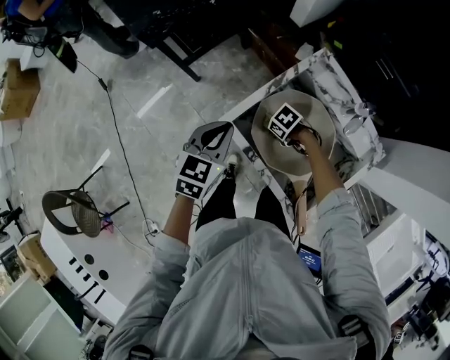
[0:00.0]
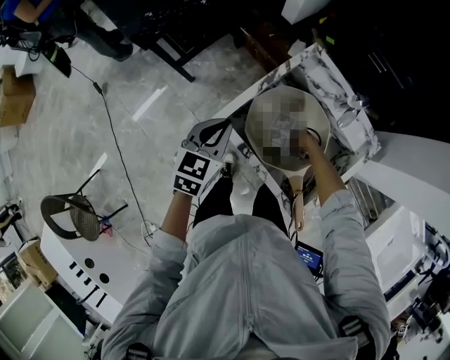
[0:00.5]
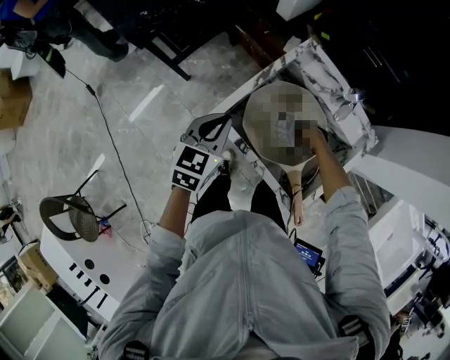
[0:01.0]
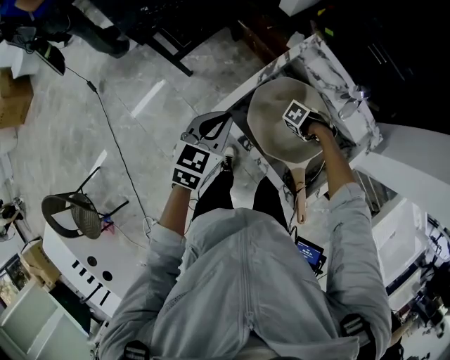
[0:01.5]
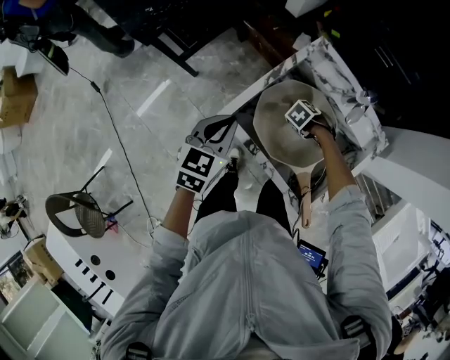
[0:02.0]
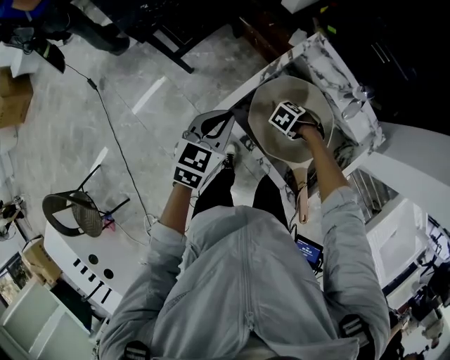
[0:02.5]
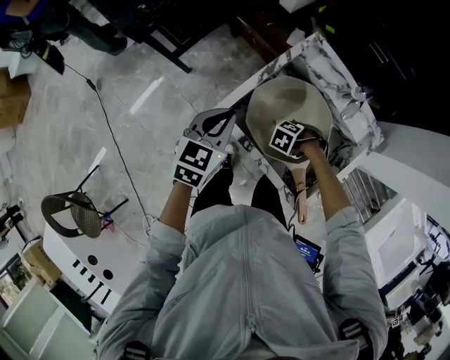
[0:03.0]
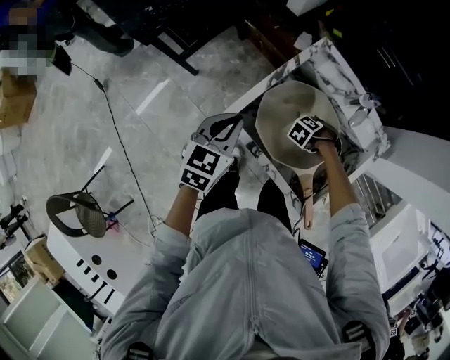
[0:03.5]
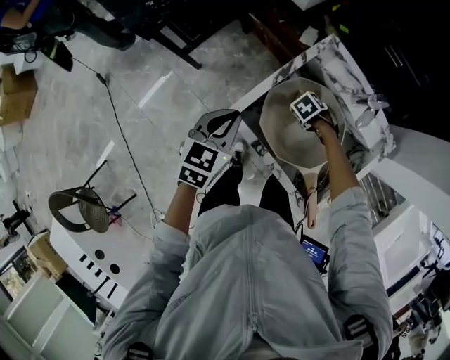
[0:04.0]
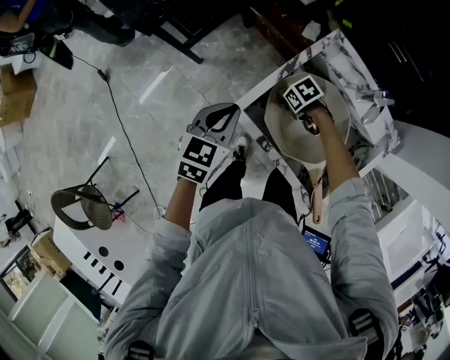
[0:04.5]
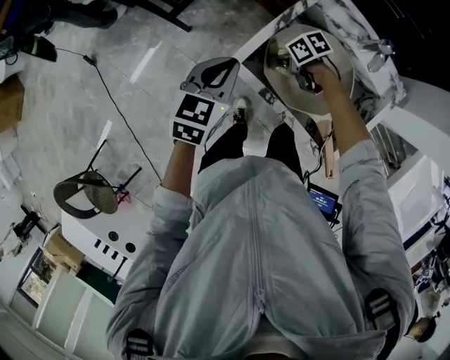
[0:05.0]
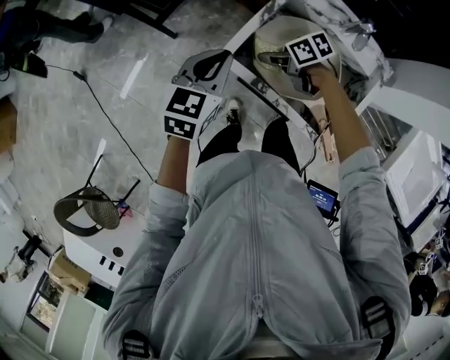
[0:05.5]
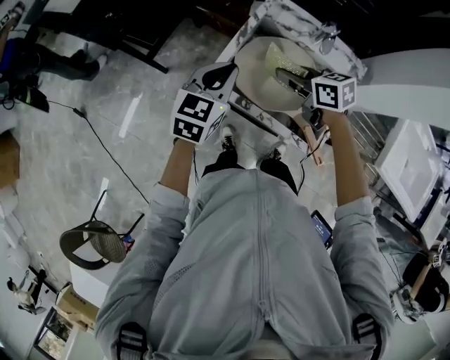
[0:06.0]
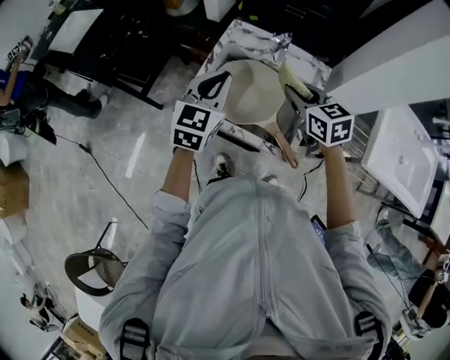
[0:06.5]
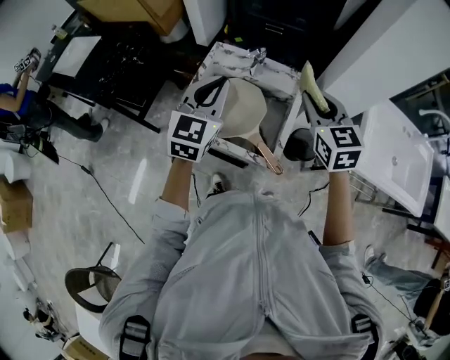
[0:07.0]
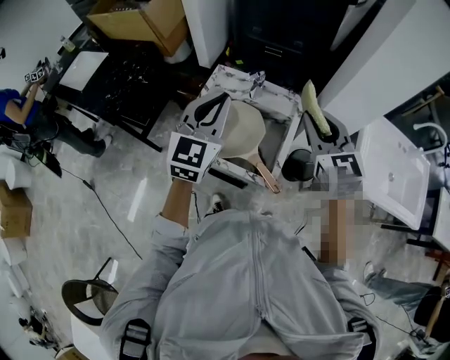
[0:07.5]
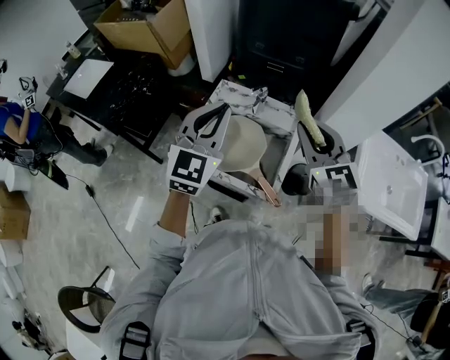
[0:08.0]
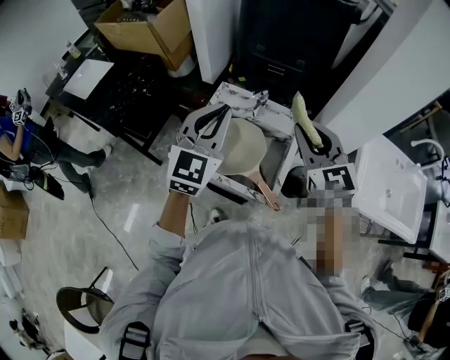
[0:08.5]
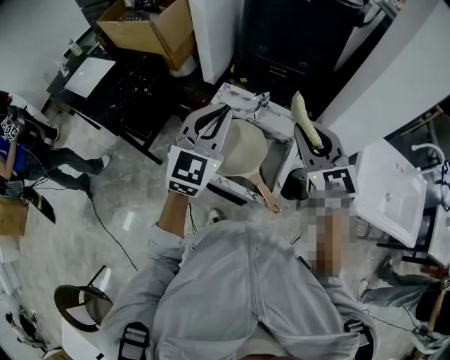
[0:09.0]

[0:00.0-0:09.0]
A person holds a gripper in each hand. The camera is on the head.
0:00.0 to 0:02.0: The right gripper ends up about 10 cm from where it was, and rotates about 20 degrees.
0:02.0 to 0:04.5: The right gripper moves about 10 cm, and rotates about 30 degrees.
0:04.5 to 0:07.0: The left gripper goes about 25 cm upward, and rotates approximately 40 degrees; the right gripper heads upward, covering roughly 50 cm, and points its fingers about 50 degrees further upward.
0:07.0 to 0:09.0: The grippers both shift upward by approximately 10 cm.

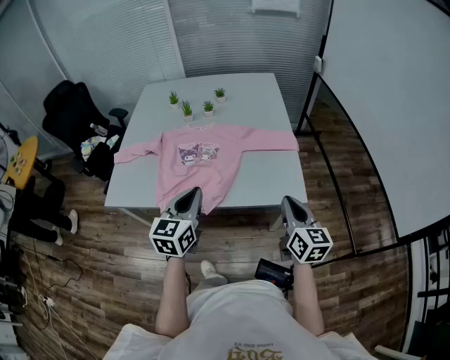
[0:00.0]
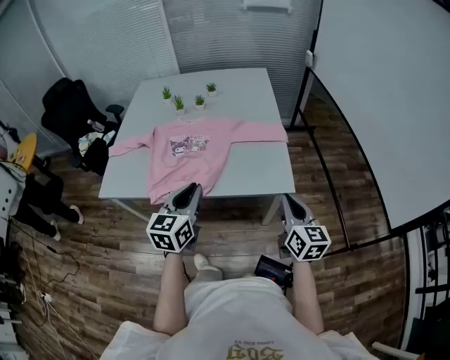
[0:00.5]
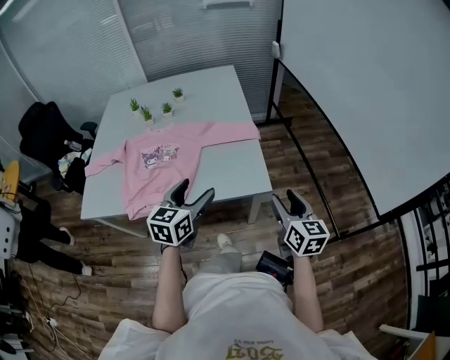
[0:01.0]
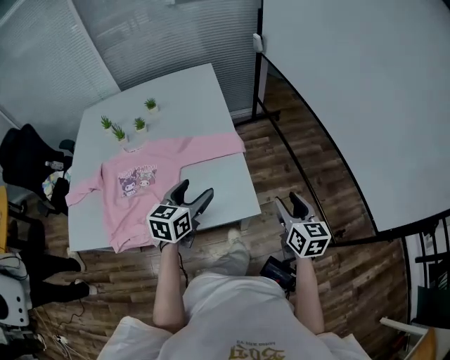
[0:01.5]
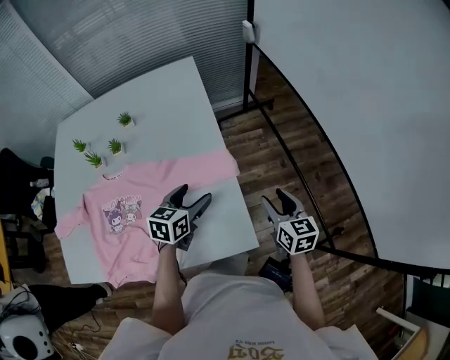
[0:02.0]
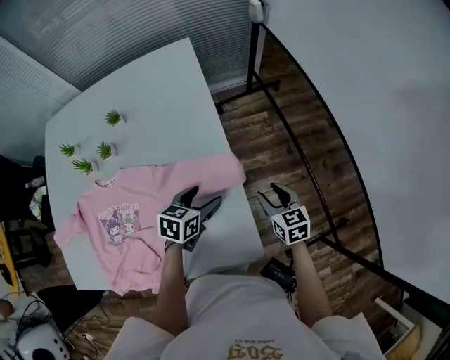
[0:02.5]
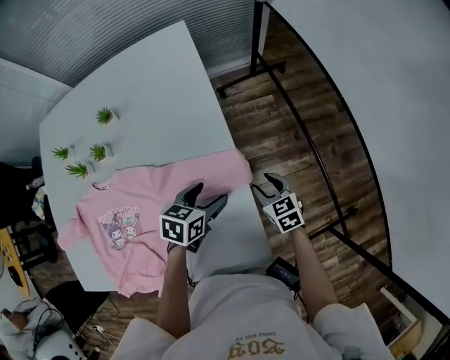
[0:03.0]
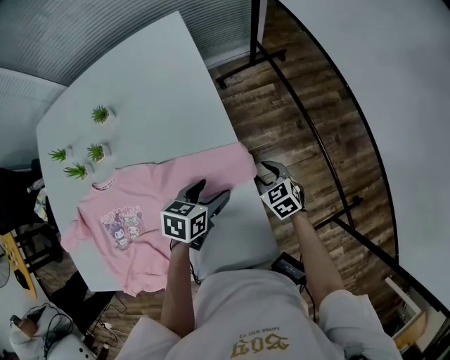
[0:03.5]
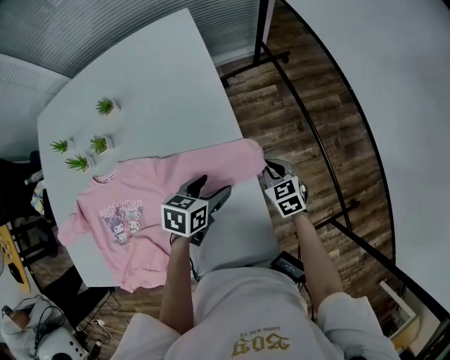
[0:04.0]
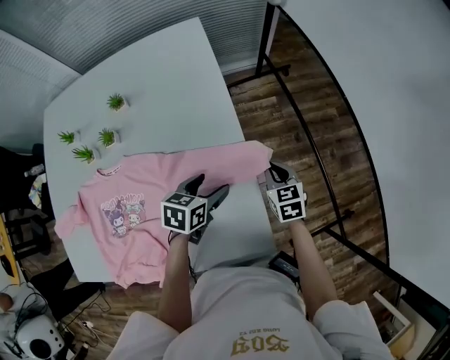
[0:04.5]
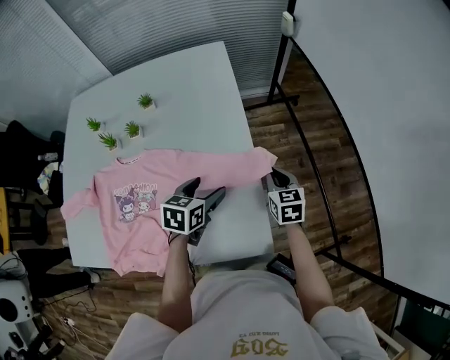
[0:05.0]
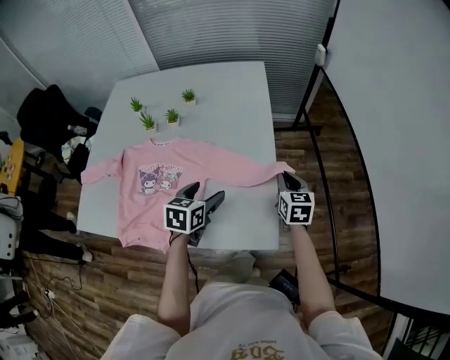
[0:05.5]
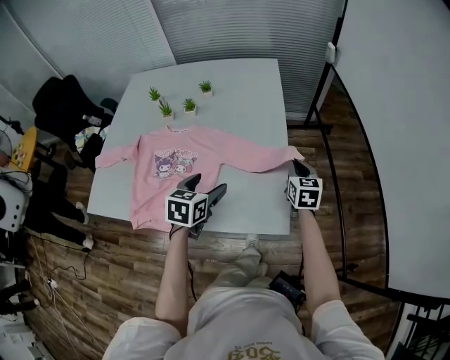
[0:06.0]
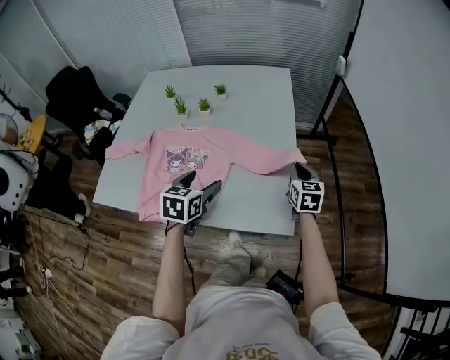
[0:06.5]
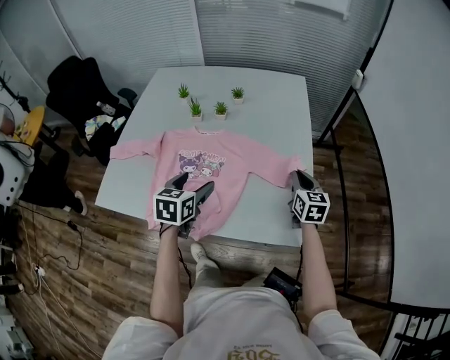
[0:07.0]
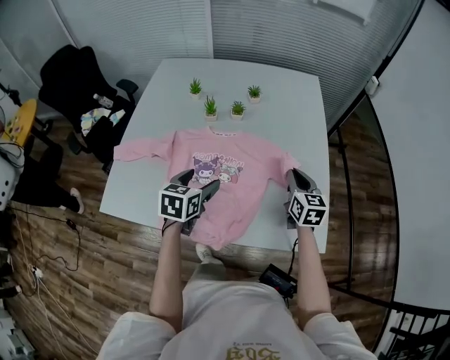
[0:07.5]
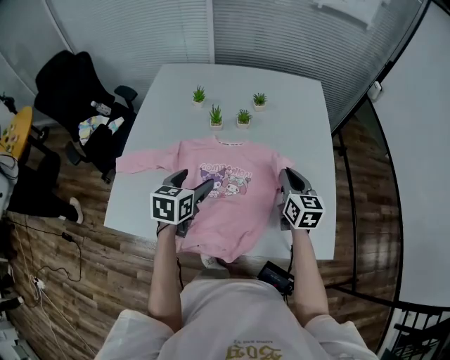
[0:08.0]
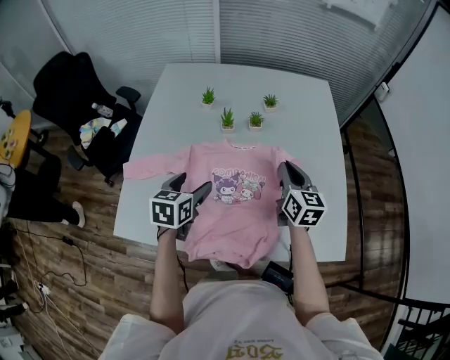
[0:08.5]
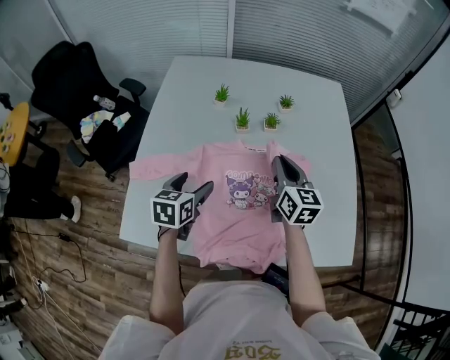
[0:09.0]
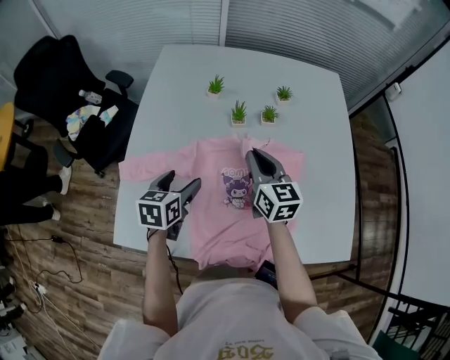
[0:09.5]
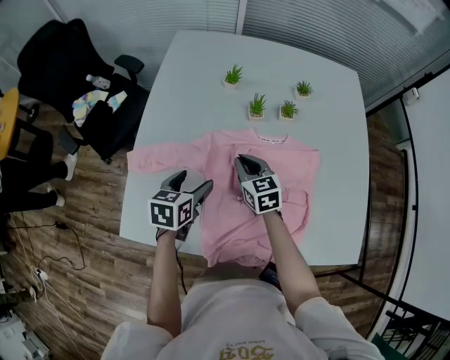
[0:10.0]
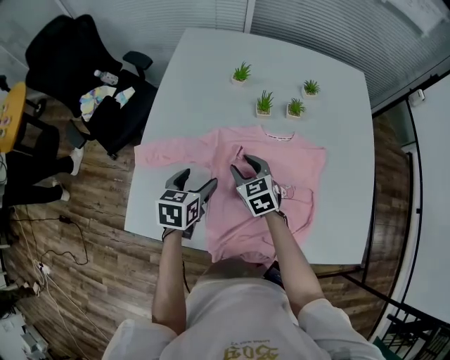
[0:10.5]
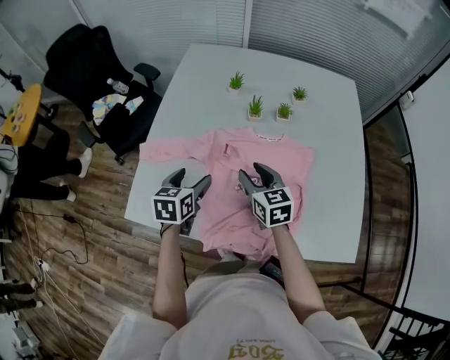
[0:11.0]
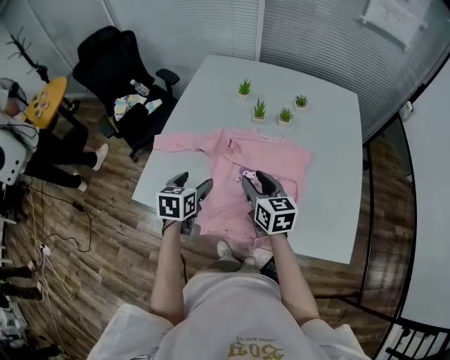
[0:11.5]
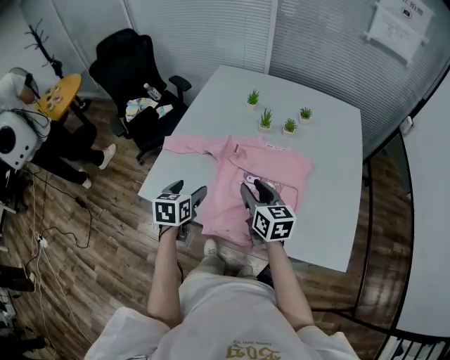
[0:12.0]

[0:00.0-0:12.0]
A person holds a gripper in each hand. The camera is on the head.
0:00.0 to 0:02.0: Both grippers travel together forward, to the right and downward, approximately 40 cm. The left gripper changes its angle by roughly 30 degrees, and opens up. The right gripper opens up.
0:02.0 to 0:04.0: The left gripper heads downward and forward, covering about 15 cm, and turns by approximately 20 degrees. Meanwhile the right gripper heads downward, forward and to the left, covering some 25 cm, swivels about 30 degrees, and closes.
0:04.0 to 0:06.0: The right gripper is displaced upward and backward by some 20 cm. Meanwhile the left gripper goes about 25 cm backward, upward and to the left, and rotates approximately 30 degrees.
0:06.0 to 0:08.0: Both grippers move to the left, about 30 cm.
0:08.0 to 0:10.0: The left gripper shifts roughly 20 cm to the left and downward; the right gripper moves to the left, approximately 30 cm, and turns by approximately 20 degrees.
0:10.0 to 0:12.0: The two grippers go approximately 20 cm backward and upward. The left gripper rotates some 20 degrees; the right gripper opens its fingers.

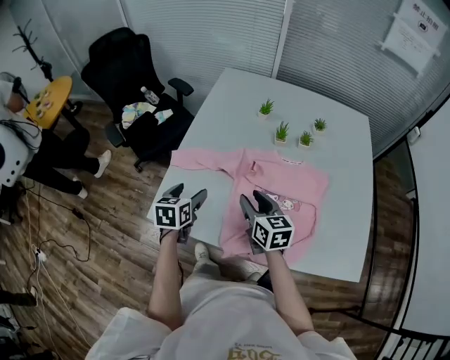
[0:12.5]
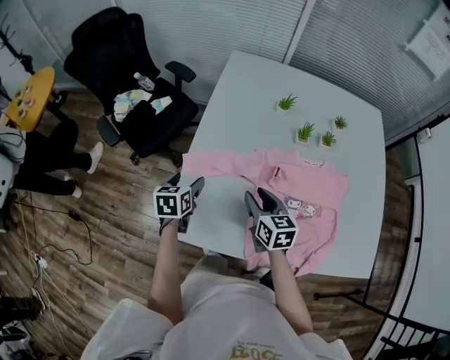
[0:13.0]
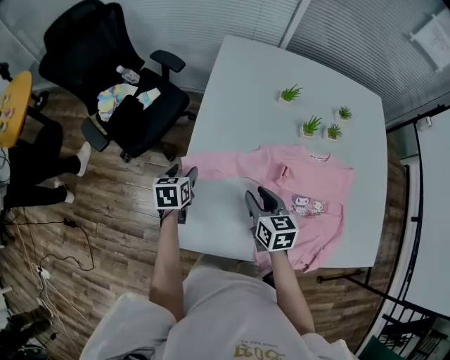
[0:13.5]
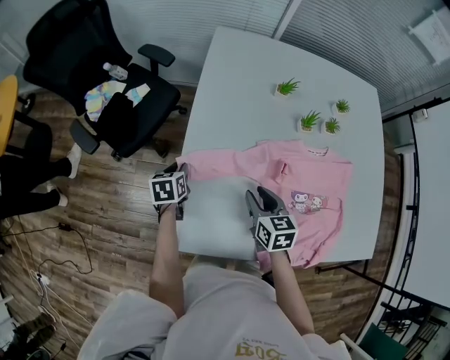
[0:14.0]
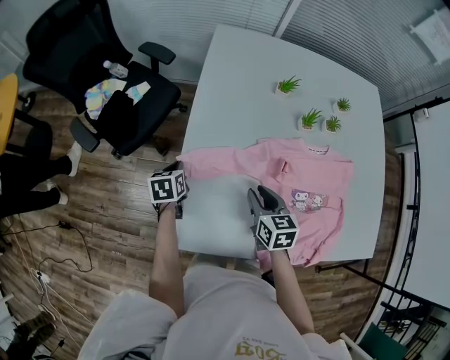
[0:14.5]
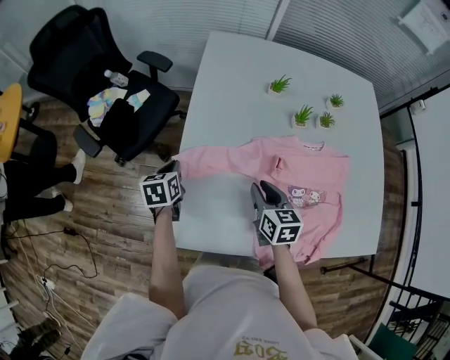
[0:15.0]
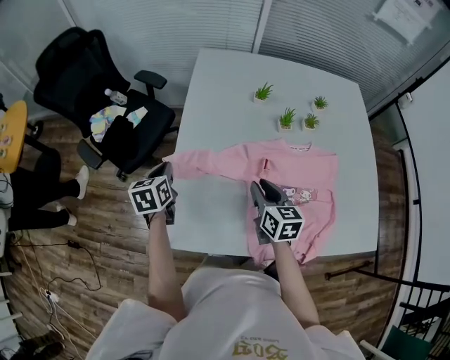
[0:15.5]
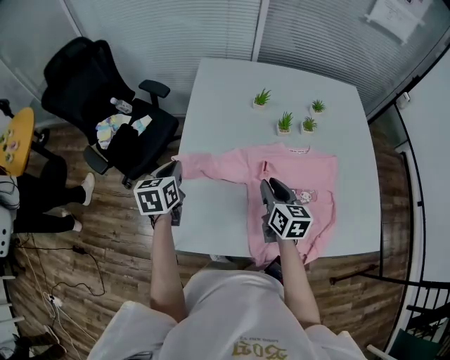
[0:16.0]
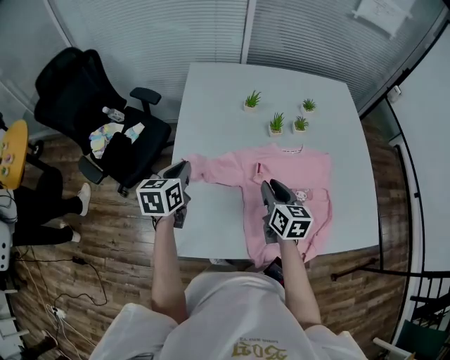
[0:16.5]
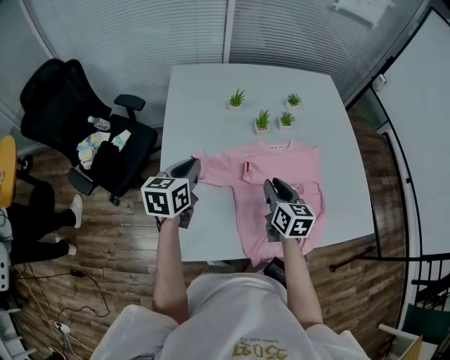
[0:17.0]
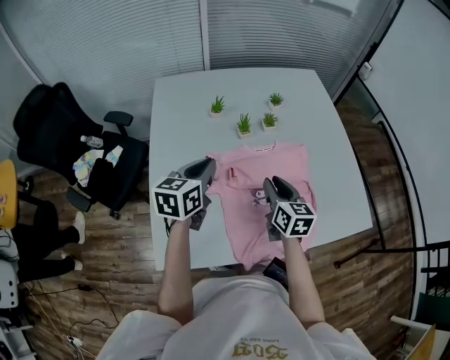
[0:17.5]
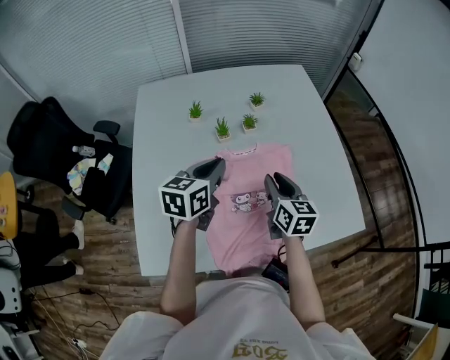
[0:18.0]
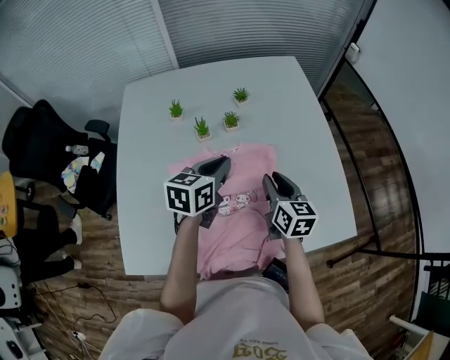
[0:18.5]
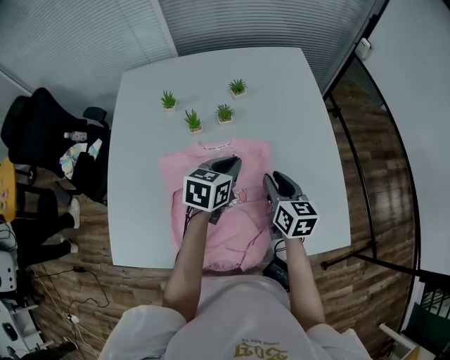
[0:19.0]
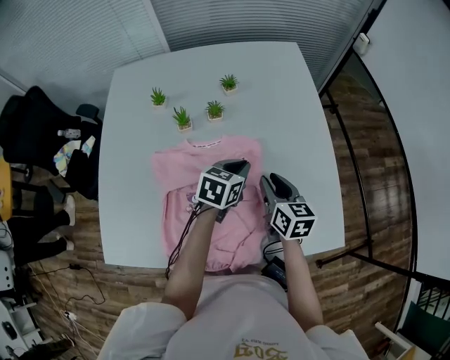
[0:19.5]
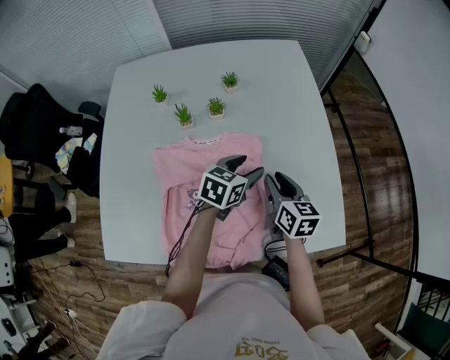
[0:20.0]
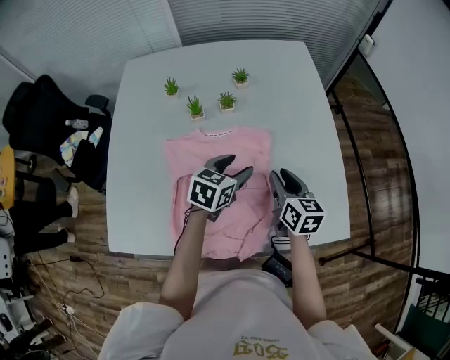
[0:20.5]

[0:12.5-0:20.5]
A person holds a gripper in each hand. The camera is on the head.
0:12.5 to 0:14.5: The right gripper heads forward, to the left and downward, covering roughly 15 cm, and turns by about 20 degrees. The left gripper heads forward, to the left and downward, covering approximately 30 cm, and closes.
0:14.5 to 0:16.5: The right gripper goes about 15 cm to the right and upward. Meanwhile the left gripper travels upward and to the right by roughly 20 cm, and turns by approximately 20 degrees.
0:16.5 to 0:18.5: The left gripper heads to the right, covering about 40 cm, and turns by approximately 20 degrees, while the right gripper is displaced to the right by some 25 cm.
0:18.5 to 0:20.5: The right gripper goes roughly 5 cm to the right. The left gripper goes about 15 cm downward and to the right, and opens.
